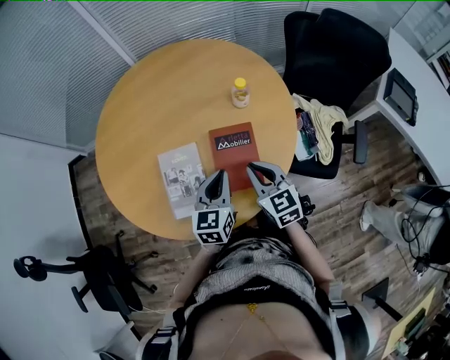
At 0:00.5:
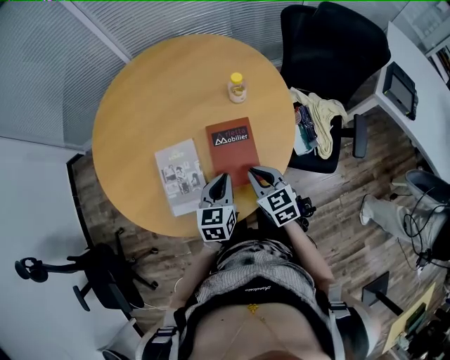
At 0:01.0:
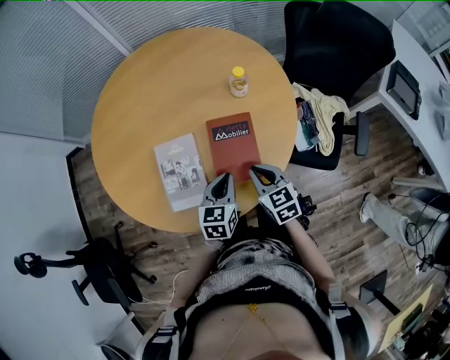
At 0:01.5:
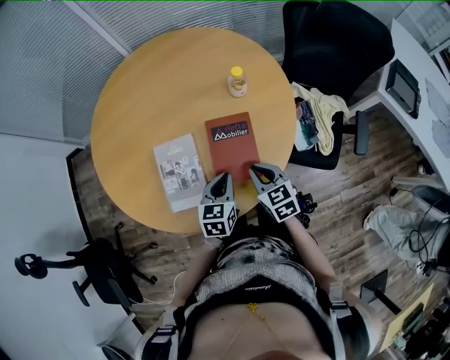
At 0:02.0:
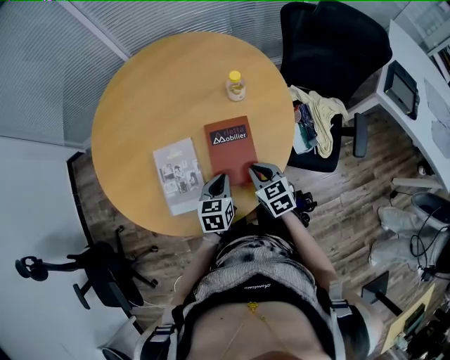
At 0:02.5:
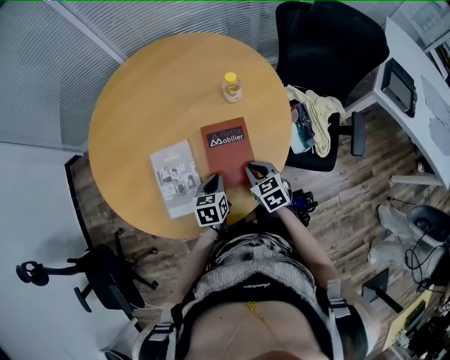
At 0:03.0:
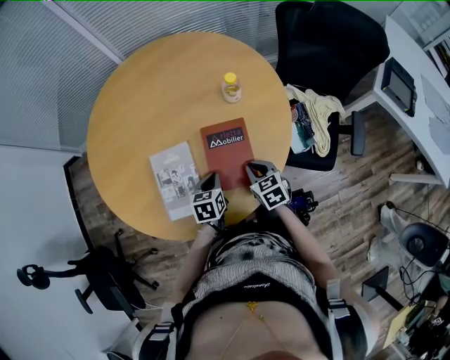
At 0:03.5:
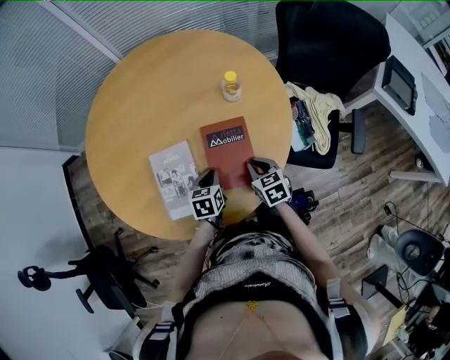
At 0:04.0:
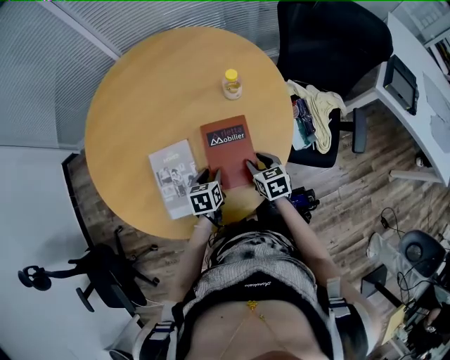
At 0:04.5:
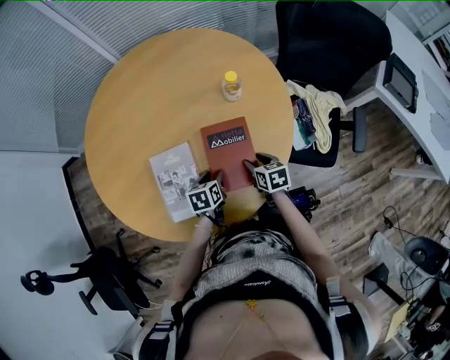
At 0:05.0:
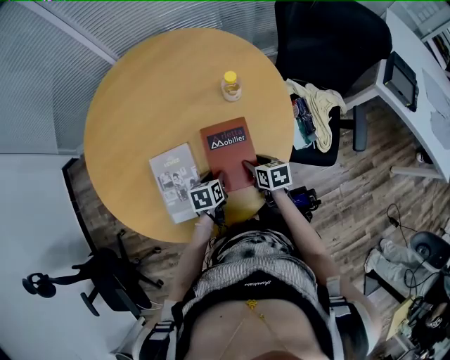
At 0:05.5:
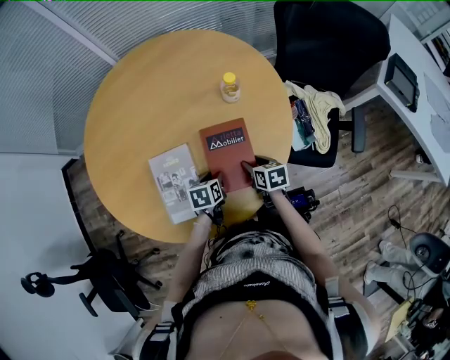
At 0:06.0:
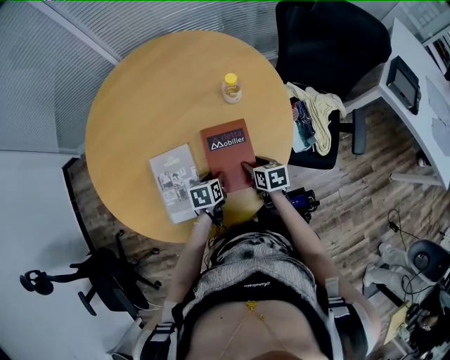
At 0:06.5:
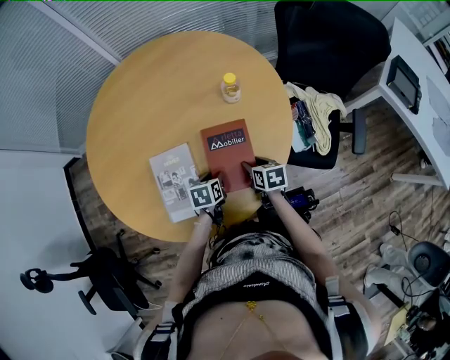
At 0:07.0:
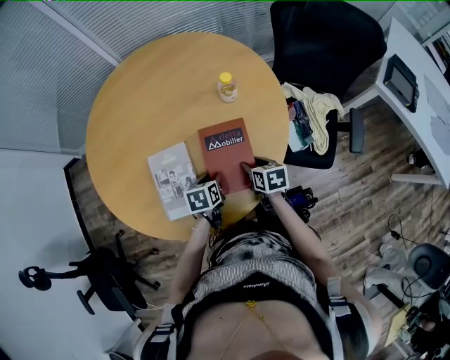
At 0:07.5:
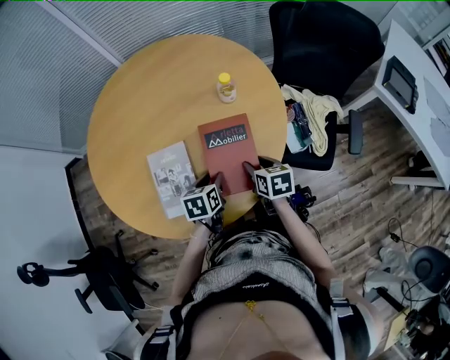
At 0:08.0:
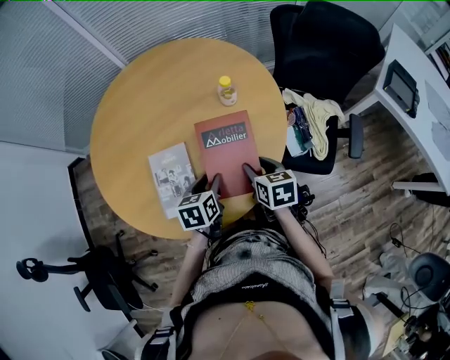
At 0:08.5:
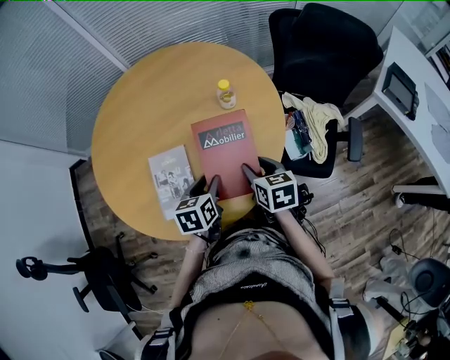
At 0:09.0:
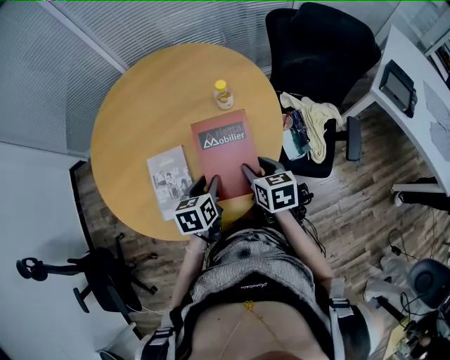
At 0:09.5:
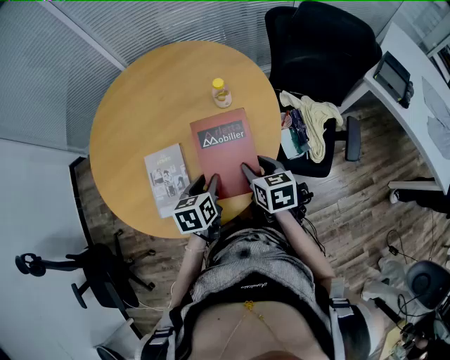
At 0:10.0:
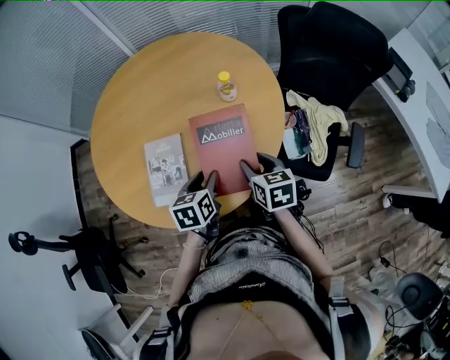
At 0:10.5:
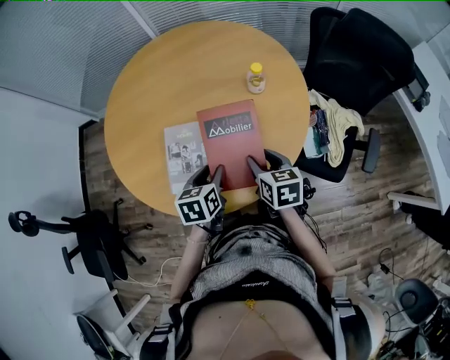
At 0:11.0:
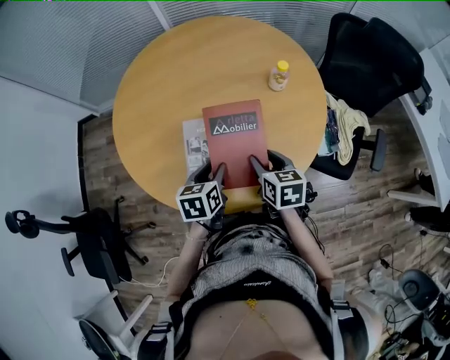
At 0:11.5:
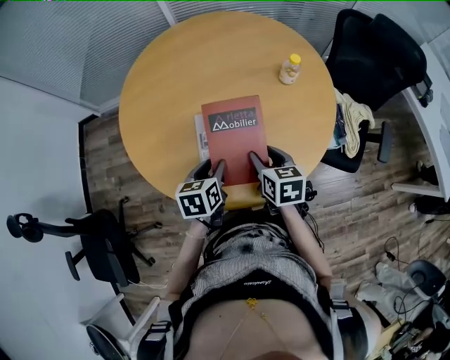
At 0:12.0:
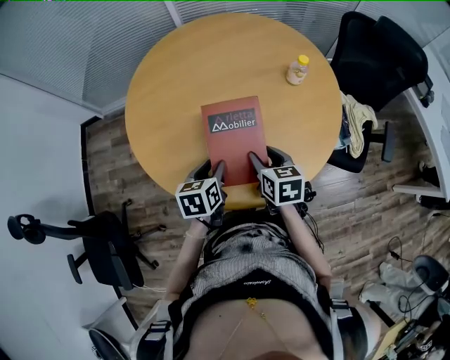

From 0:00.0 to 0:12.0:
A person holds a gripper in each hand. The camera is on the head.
From 0:00.0 to 0:02.0: Both grippers travel together downward, about 10 cm.
From 0:02.0 to 0:04.0: The grippers both shift downward by about 5 cm. The right gripper opens; the left gripper opens up.
From 0:04.0 to 0:06.0: The grippers stay close to where they were, moving slightly.
From 0:06.0 to 0:08.0: Both grippers travel together upward, some 15 cm.
From 0:08.0 to 0:10.0: The grippers move only a little.
From 0:10.0 to 0:12.0: Both grippers move to the left, approximately 25 cm.

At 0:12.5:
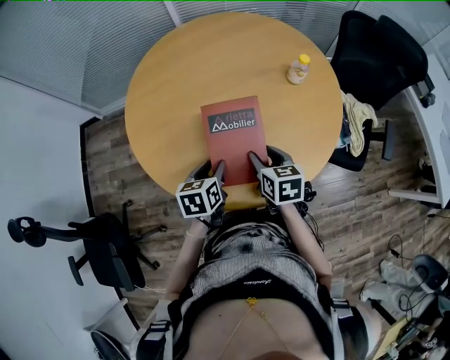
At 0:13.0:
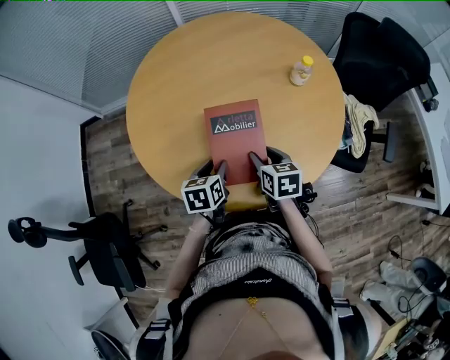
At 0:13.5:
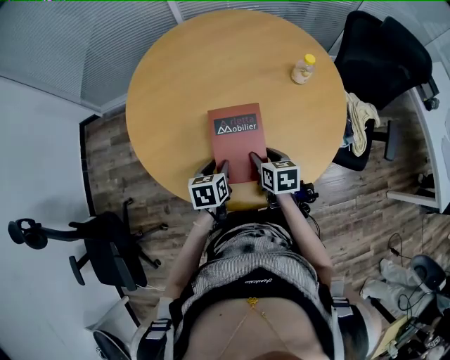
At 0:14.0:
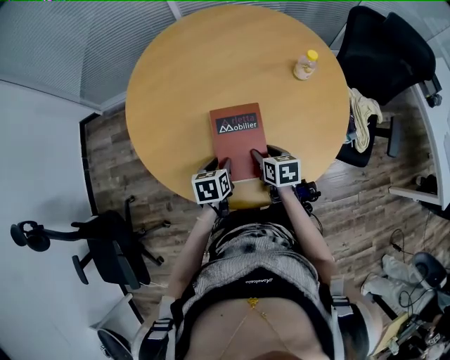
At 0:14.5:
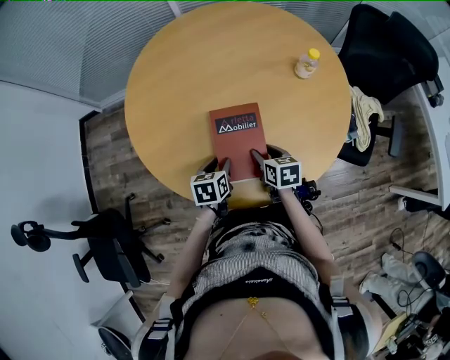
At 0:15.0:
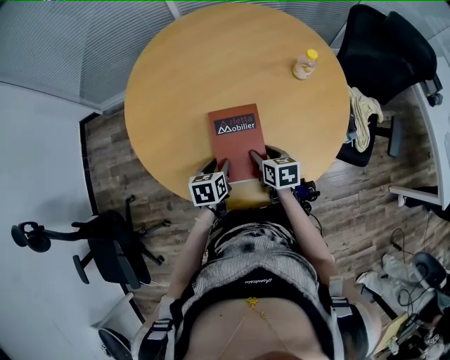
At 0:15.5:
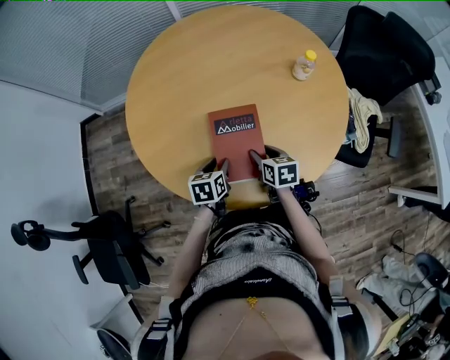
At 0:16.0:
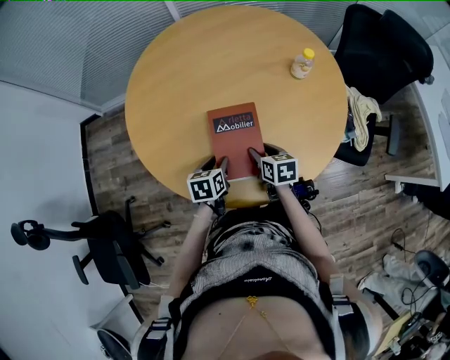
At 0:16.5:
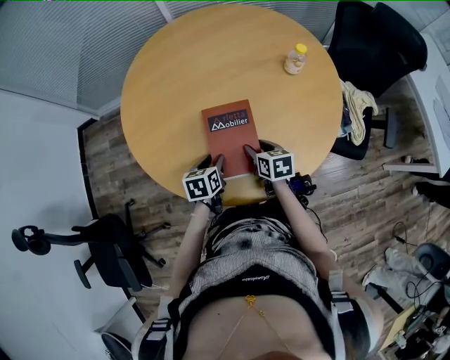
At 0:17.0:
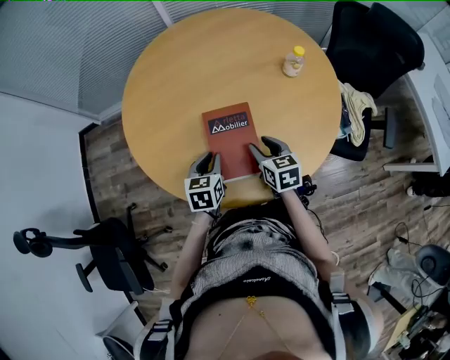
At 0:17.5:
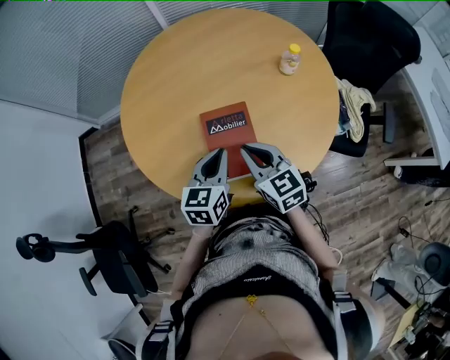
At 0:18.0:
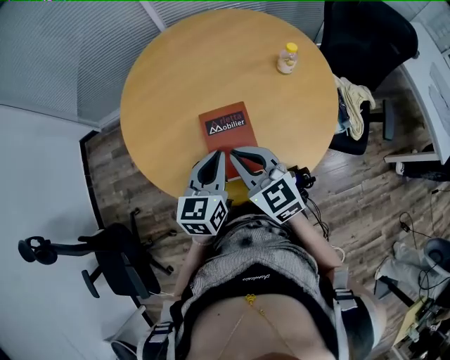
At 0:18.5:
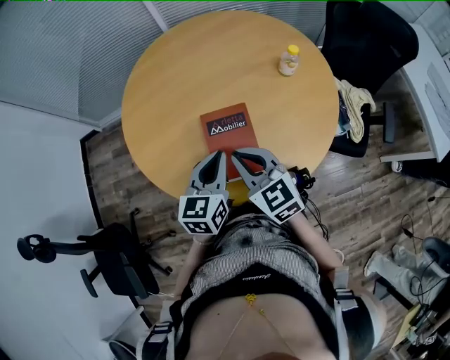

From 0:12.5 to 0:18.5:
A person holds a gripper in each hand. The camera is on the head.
From 0:12.5 to 0:14.5: Both grippers travel together downward, about 10 cm.
From 0:14.5 to 0:16.5: Both grippers stay about where they are.
From 0:16.5 to 0:18.5: The grippers both shift upward by about 20 cm. The left gripper rotates some 30 degrees, and closes up. The right gripper swivels some 40 degrees, and closes.

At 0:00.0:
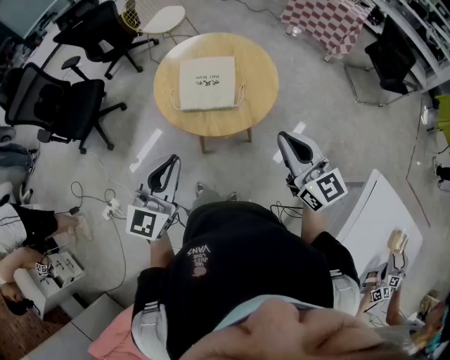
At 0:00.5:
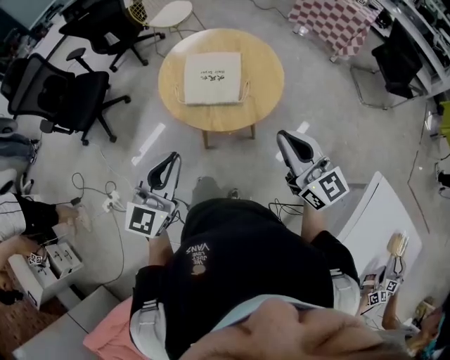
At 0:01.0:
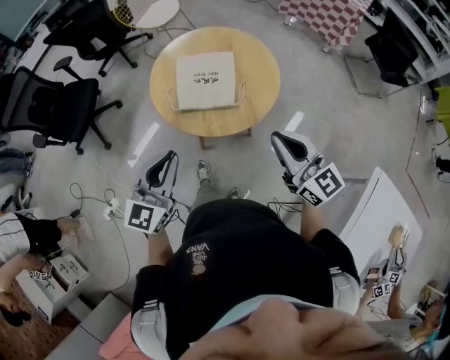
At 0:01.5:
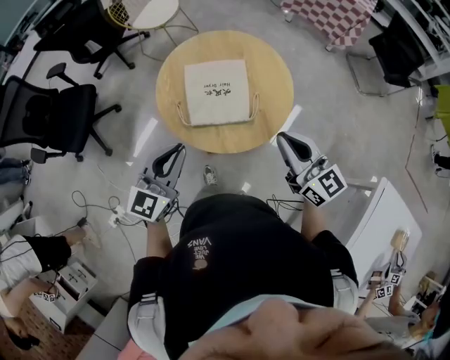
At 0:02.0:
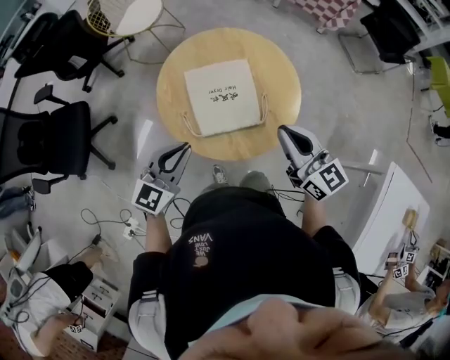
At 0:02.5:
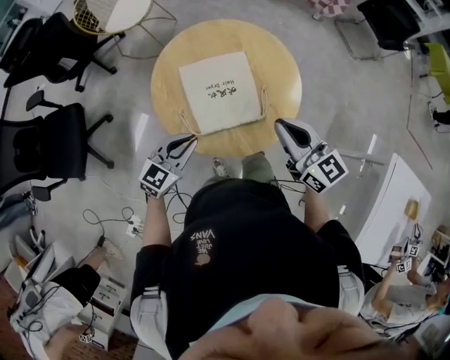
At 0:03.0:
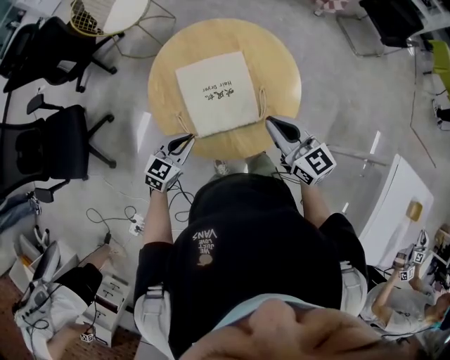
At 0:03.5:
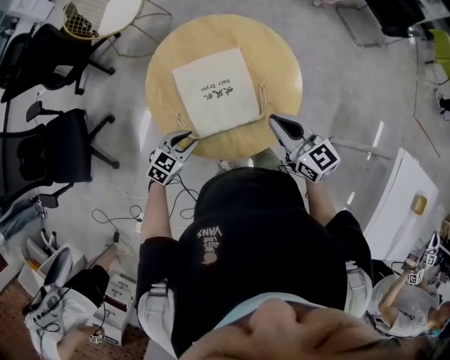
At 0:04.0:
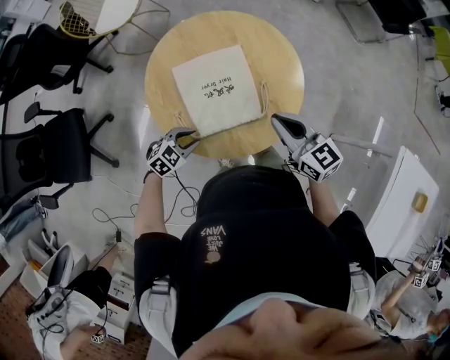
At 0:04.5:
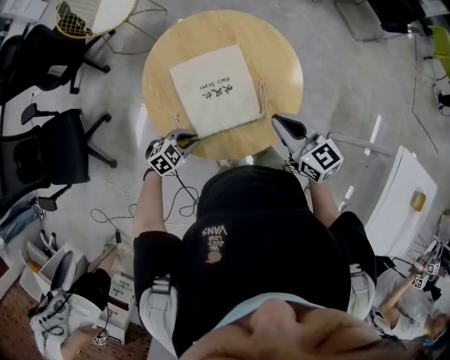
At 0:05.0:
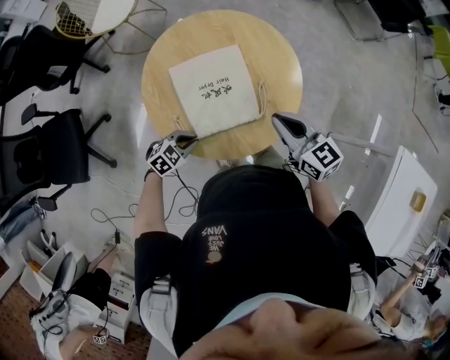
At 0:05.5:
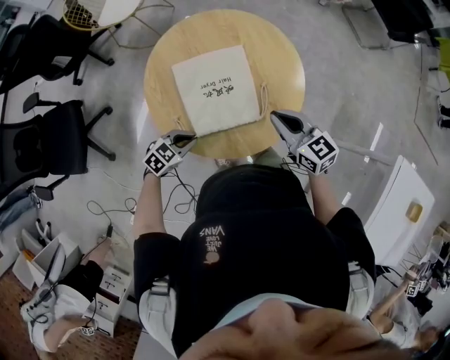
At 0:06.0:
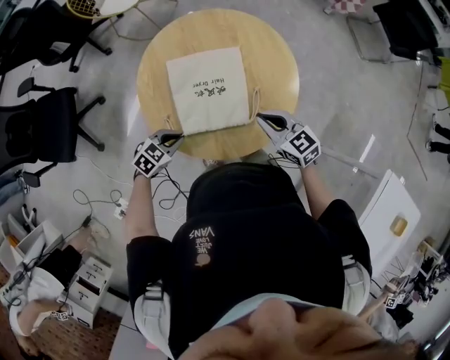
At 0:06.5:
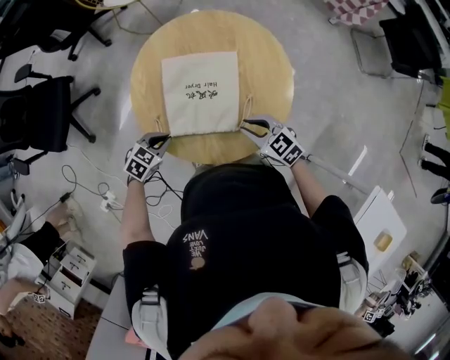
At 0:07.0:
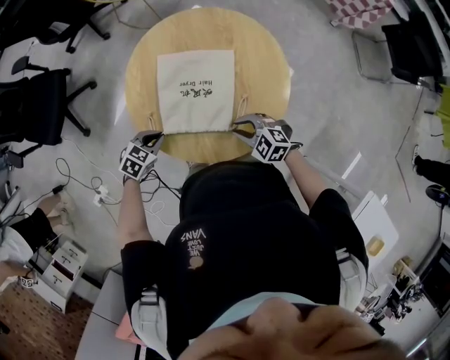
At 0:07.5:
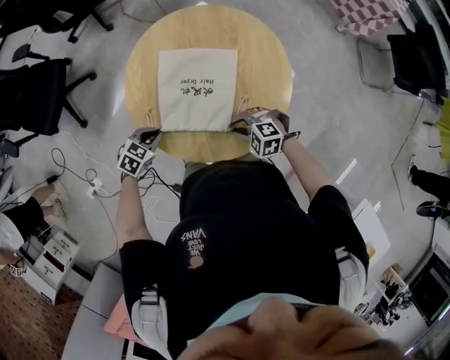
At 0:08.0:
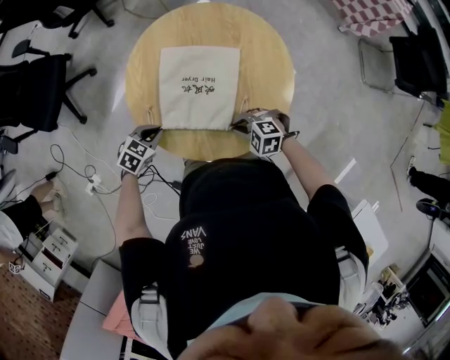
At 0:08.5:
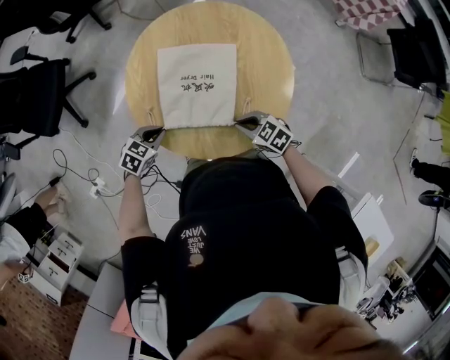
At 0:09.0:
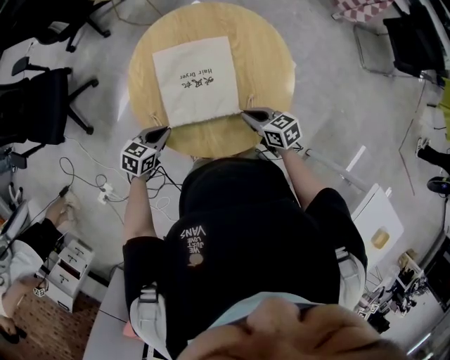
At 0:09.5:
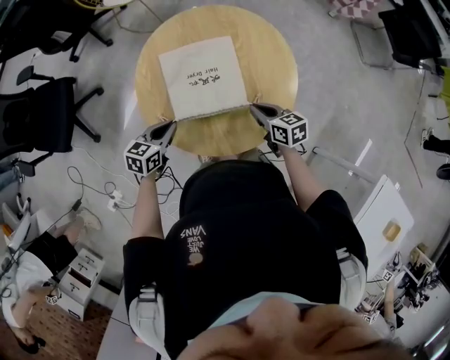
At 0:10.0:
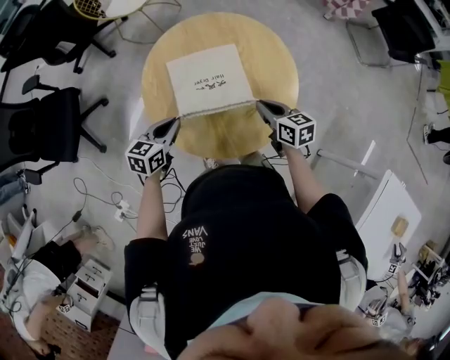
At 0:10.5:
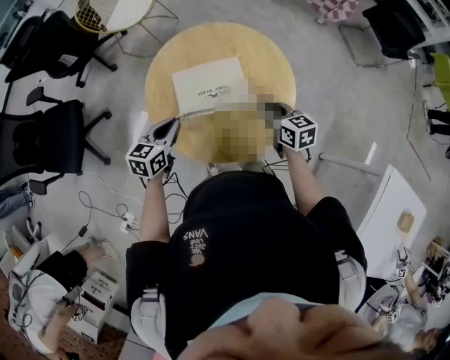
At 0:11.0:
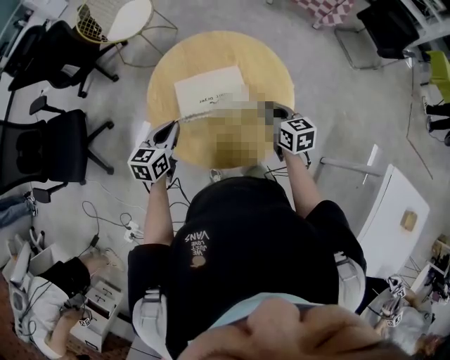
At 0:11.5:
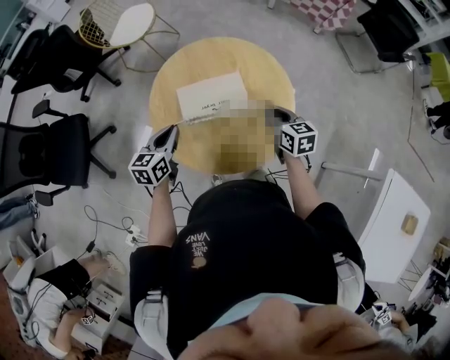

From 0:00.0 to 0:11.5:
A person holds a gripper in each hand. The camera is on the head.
From 0:00.0 to 0:02.0: The right gripper is displaced forward and to the left by roughly 25 cm, while the left gripper moves forward, to the left and downward, about 30 cm, and turns by some 30 degrees.
From 0:02.0 to 0:04.0: The left gripper moves downward, approximately 25 cm, angles its fingers downward, by some 30 degrees, and opens, while the right gripper travels downward and forward by approximately 10 cm.
From 0:04.0 to 0:06.0: The left gripper closes up, while the right gripper shifts about 10 cm downward, and rotates roughly 20 degrees.
From 0:06.0 to 0:07.5: The left gripper rotates some 20 degrees; the right gripper travels downward by roughly 10 cm, and tilts its fingers roughly 30 degrees downward.
From 0:07.5 to 0:09.5: The two grippers go approximately 5 cm upward. The left gripper turns by roughly 20 degrees. Meanwhile the right gripper twists approximately 80 degrees clockwise, seen from behind.
From 0:09.5 to 0:11.5: Both grippers travel together upward, approximately 10 cm. The right gripper swivels about 20 degrees.
